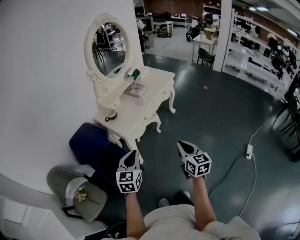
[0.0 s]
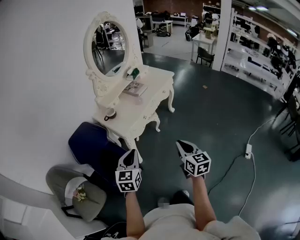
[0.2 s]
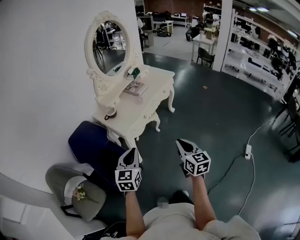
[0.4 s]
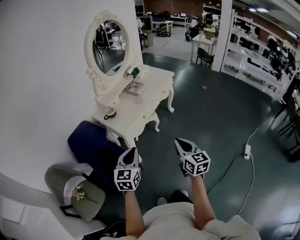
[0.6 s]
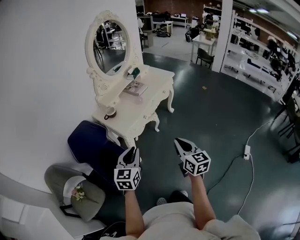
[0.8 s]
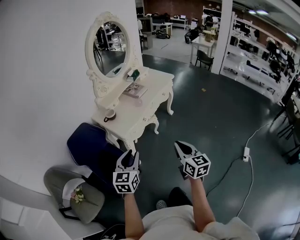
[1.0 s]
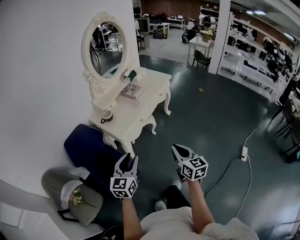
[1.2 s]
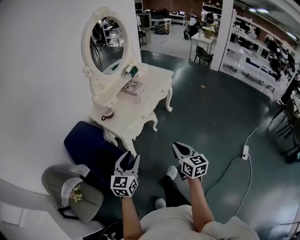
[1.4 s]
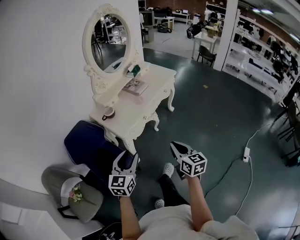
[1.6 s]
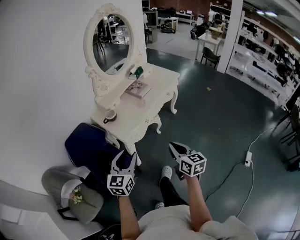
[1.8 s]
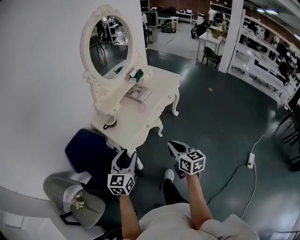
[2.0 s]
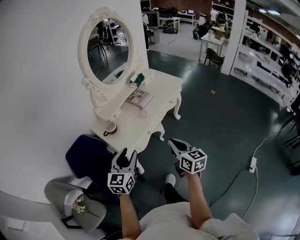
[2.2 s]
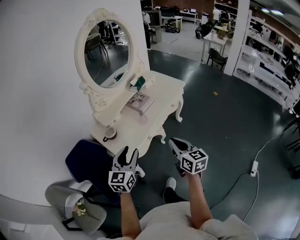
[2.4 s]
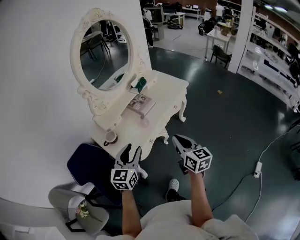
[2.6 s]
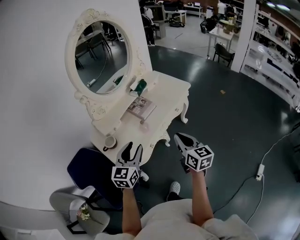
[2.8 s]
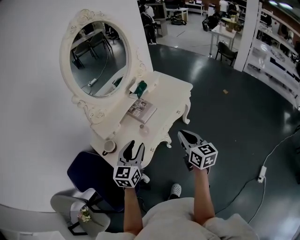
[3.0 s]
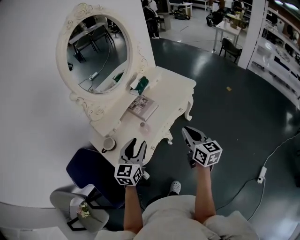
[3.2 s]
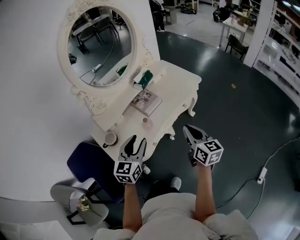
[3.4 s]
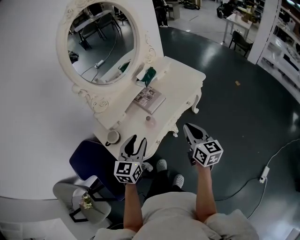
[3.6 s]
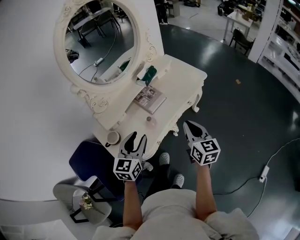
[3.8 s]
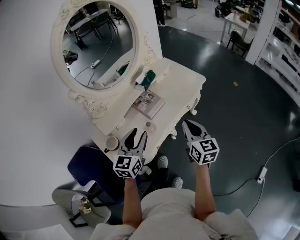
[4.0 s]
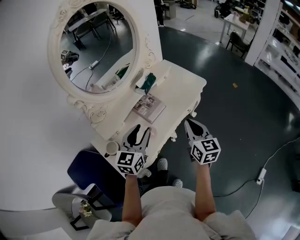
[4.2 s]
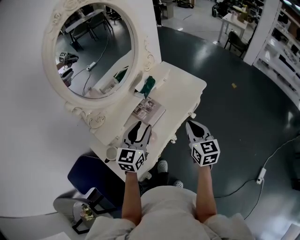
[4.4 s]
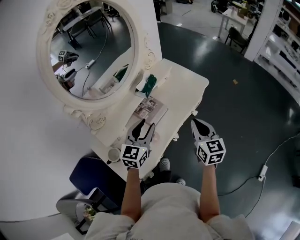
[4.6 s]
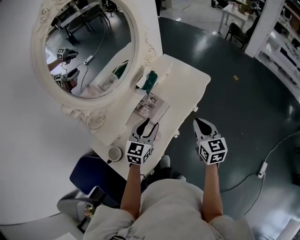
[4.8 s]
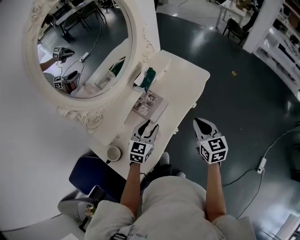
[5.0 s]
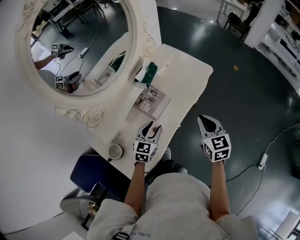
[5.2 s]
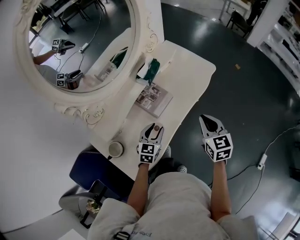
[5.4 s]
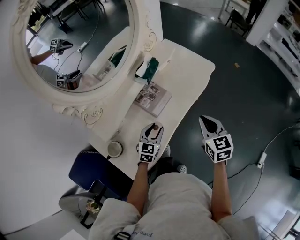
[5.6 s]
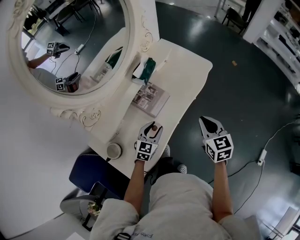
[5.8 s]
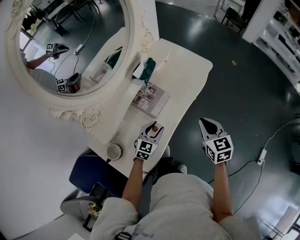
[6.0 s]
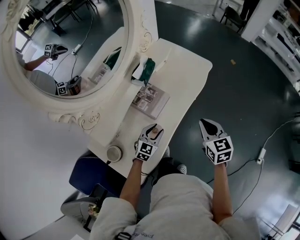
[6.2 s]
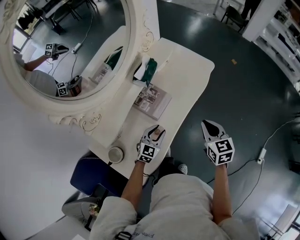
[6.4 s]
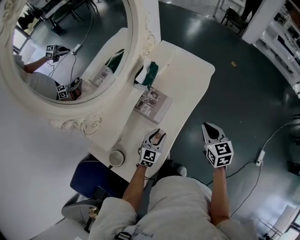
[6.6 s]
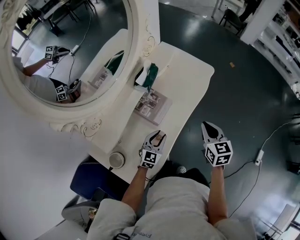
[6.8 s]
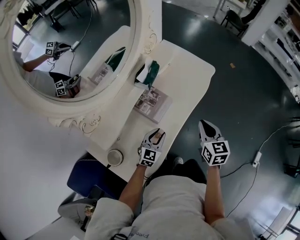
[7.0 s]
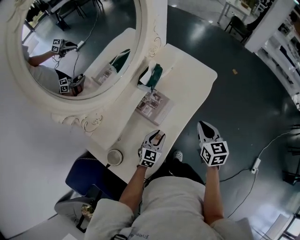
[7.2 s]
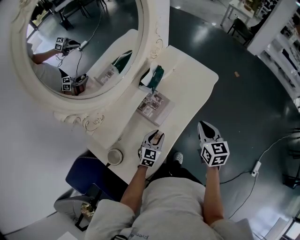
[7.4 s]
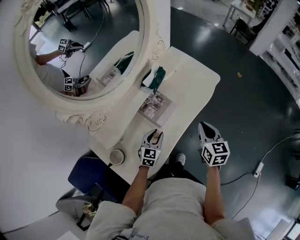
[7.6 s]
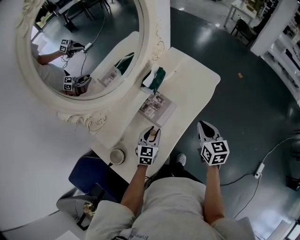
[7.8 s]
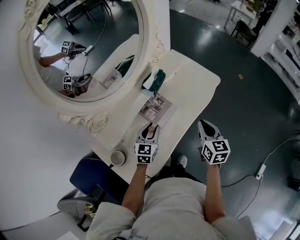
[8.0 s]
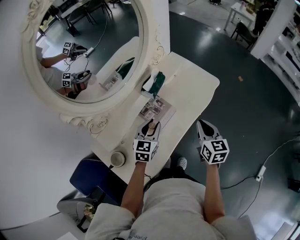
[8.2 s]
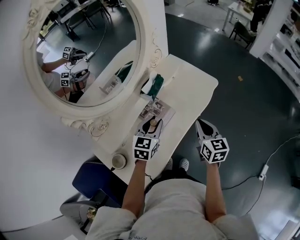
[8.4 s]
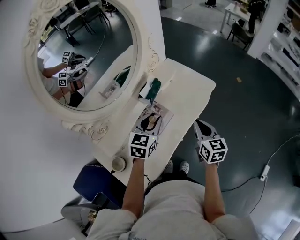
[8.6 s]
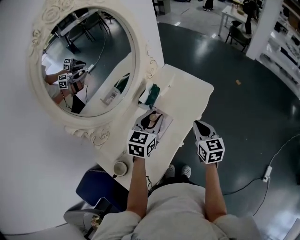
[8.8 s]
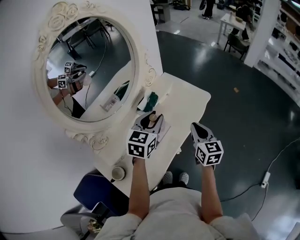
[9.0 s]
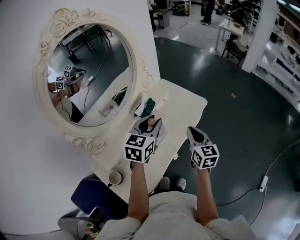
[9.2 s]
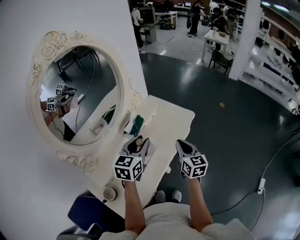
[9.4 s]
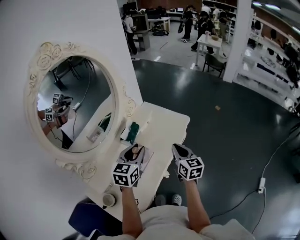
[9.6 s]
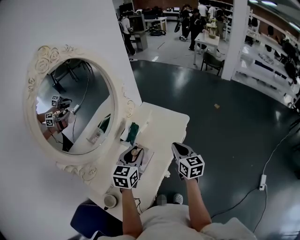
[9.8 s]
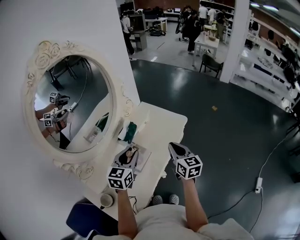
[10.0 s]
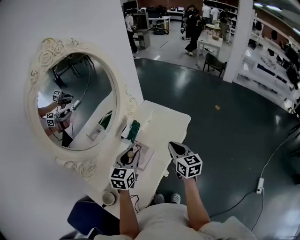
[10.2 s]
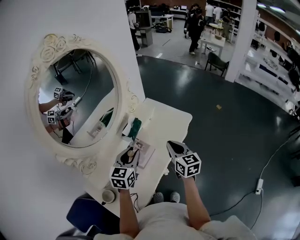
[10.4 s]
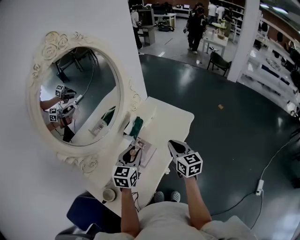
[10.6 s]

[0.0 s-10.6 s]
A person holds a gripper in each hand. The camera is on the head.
0.0 to 1.6 s: The right gripper is displaced forward by about 5 cm. Meanwhile the left gripper opens.
1.6 to 3.0 s: Both grippers move forward, some 35 cm.
3.0 to 4.6 s: Both grippers move forward, some 20 cm.
4.6 to 6.0 s: The right gripper goes about 10 cm downward; the left gripper travels downward by about 20 cm, and changes its angle by some 20 degrees.
6.0 to 7.6 s: The right gripper changes place by some 5 cm.
7.6 to 9.0 s: The left gripper is displaced upward by about 30 cm, while the right gripper shifts some 10 cm upward.
9.0 to 10.6 s: The left gripper shifts by about 5 cm.

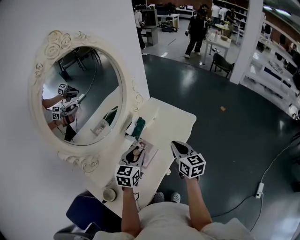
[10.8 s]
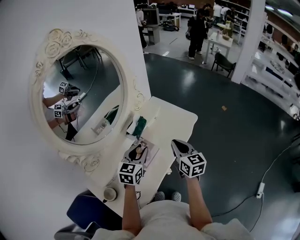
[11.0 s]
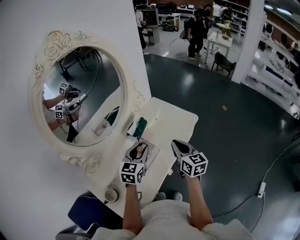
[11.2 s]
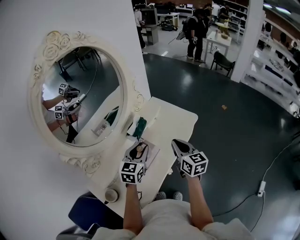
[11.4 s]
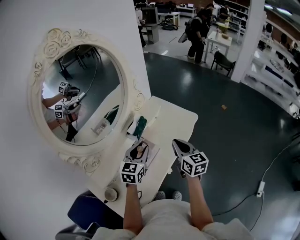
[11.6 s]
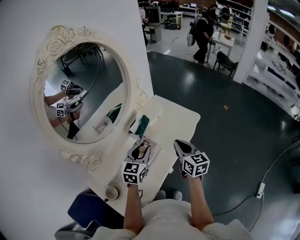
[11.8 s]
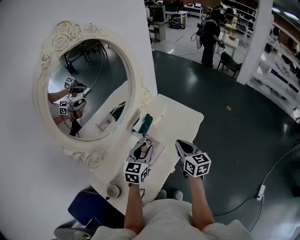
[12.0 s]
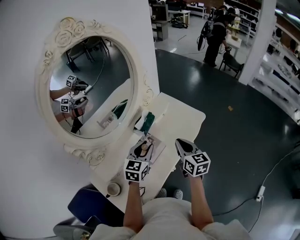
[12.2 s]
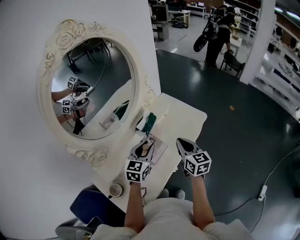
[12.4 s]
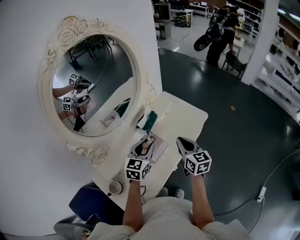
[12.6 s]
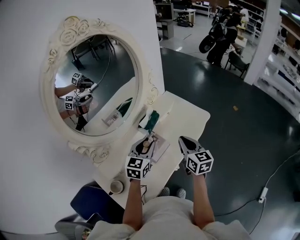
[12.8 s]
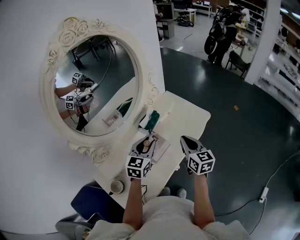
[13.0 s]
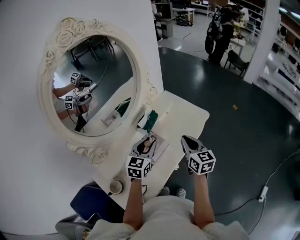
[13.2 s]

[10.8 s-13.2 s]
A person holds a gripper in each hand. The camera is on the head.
10.8 to 13.2 s: The grippers stay close to where they were, moving slightly.

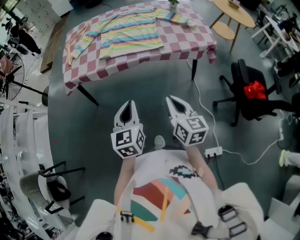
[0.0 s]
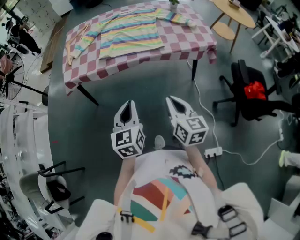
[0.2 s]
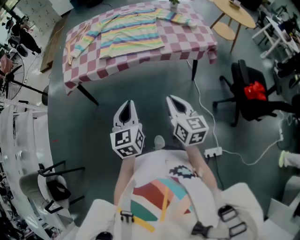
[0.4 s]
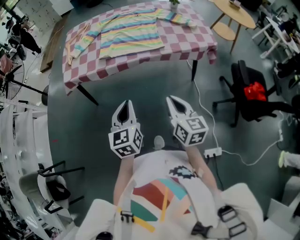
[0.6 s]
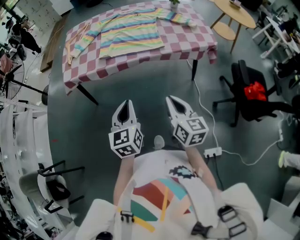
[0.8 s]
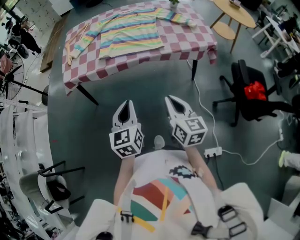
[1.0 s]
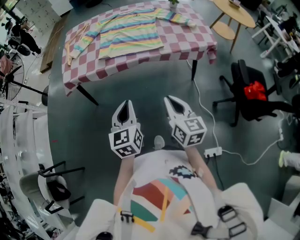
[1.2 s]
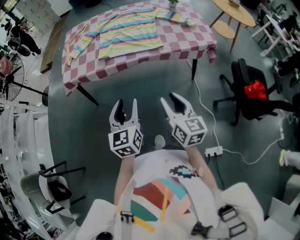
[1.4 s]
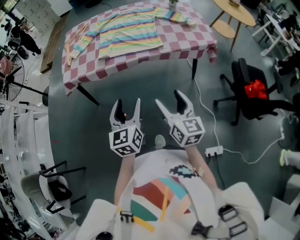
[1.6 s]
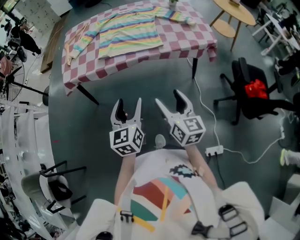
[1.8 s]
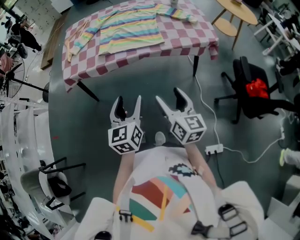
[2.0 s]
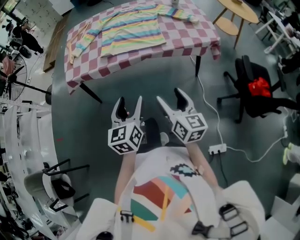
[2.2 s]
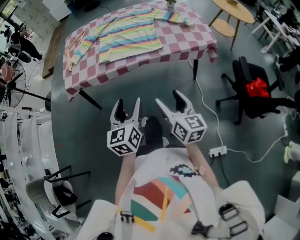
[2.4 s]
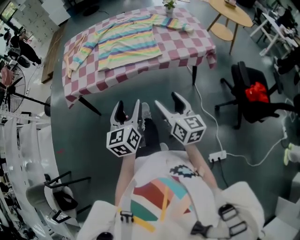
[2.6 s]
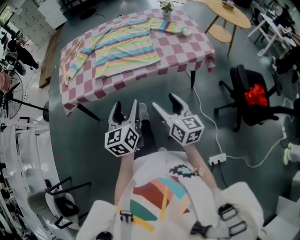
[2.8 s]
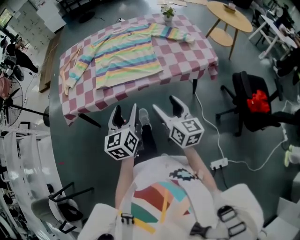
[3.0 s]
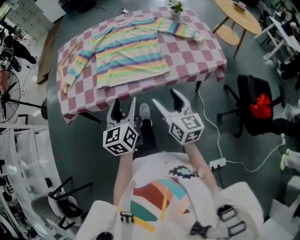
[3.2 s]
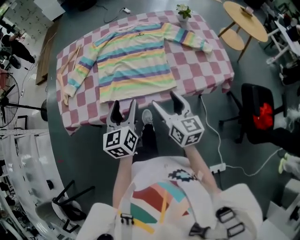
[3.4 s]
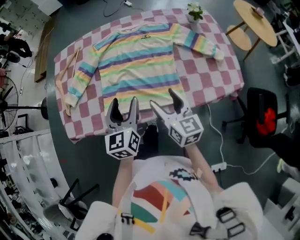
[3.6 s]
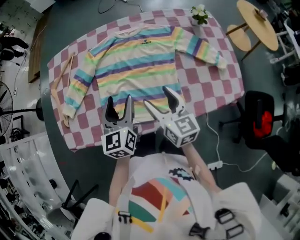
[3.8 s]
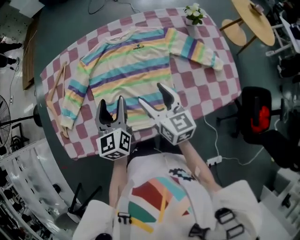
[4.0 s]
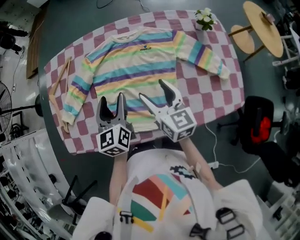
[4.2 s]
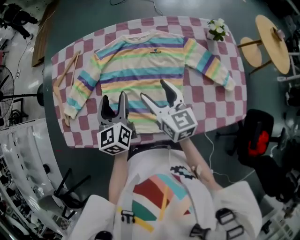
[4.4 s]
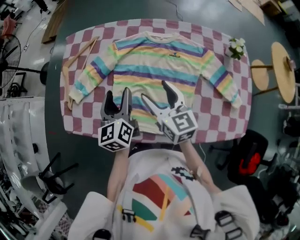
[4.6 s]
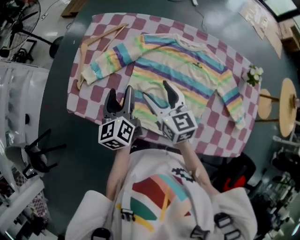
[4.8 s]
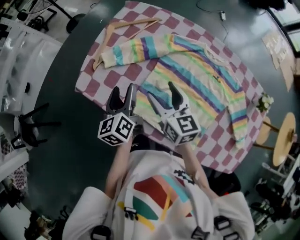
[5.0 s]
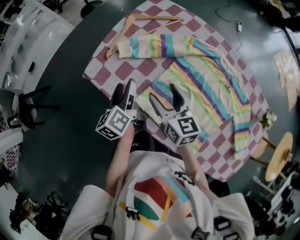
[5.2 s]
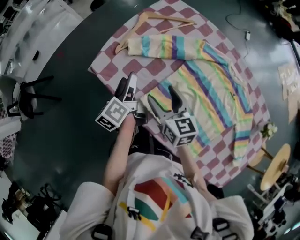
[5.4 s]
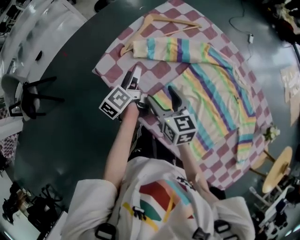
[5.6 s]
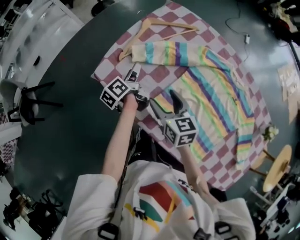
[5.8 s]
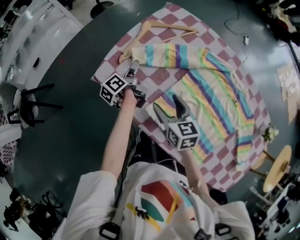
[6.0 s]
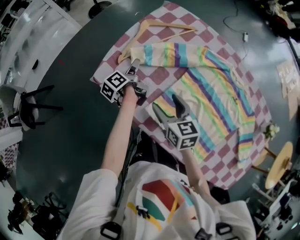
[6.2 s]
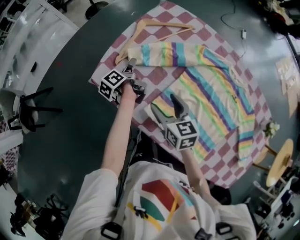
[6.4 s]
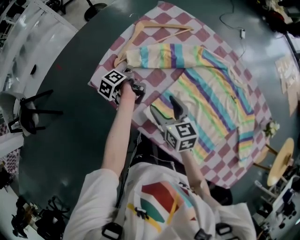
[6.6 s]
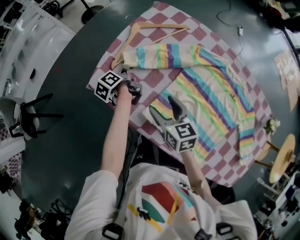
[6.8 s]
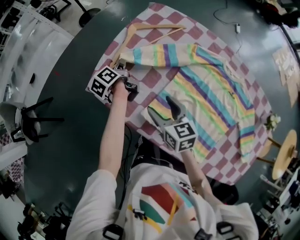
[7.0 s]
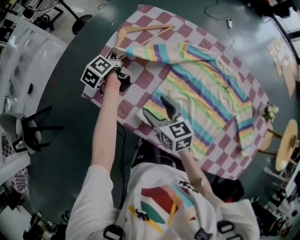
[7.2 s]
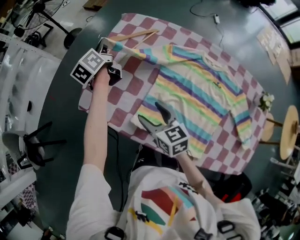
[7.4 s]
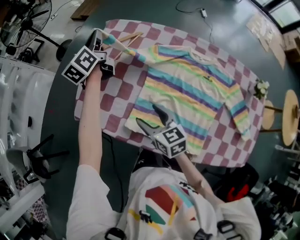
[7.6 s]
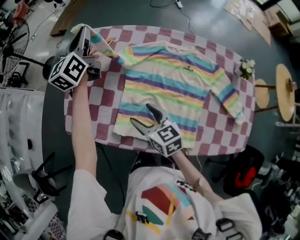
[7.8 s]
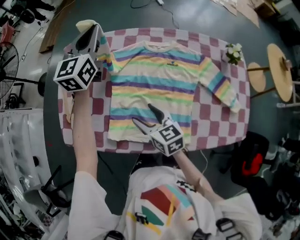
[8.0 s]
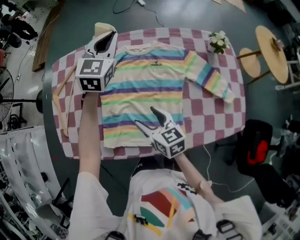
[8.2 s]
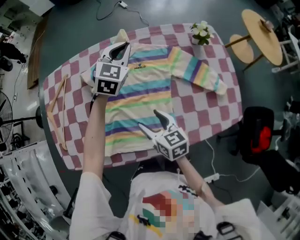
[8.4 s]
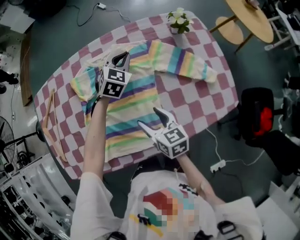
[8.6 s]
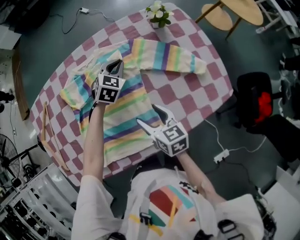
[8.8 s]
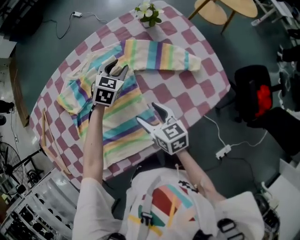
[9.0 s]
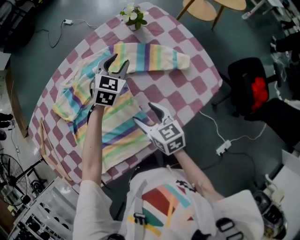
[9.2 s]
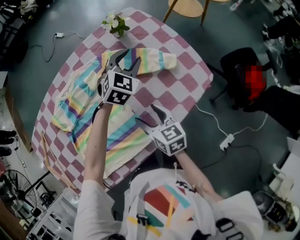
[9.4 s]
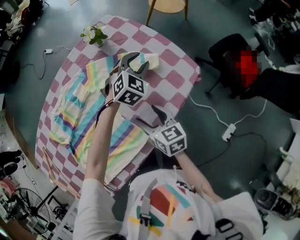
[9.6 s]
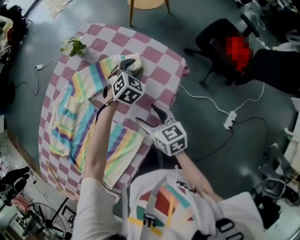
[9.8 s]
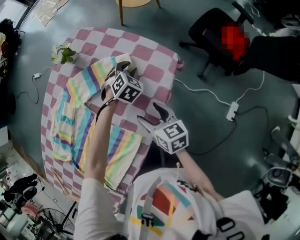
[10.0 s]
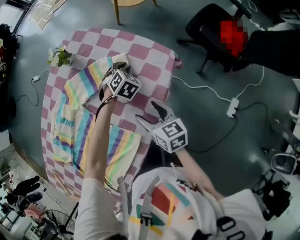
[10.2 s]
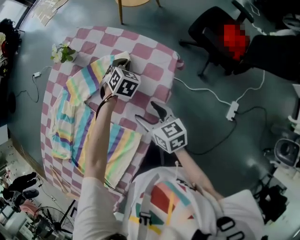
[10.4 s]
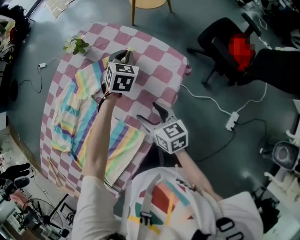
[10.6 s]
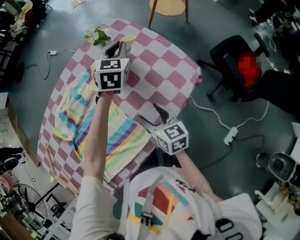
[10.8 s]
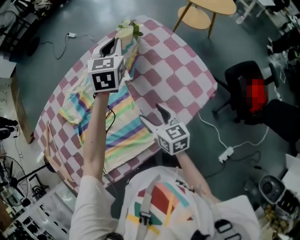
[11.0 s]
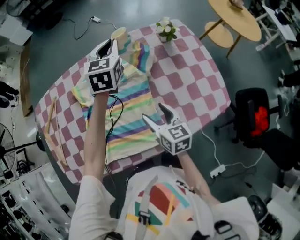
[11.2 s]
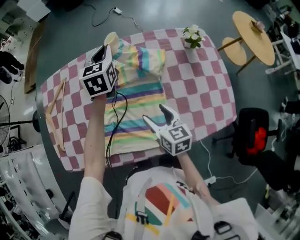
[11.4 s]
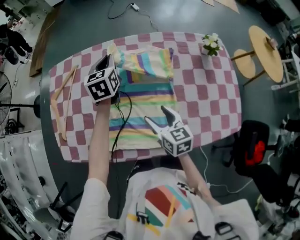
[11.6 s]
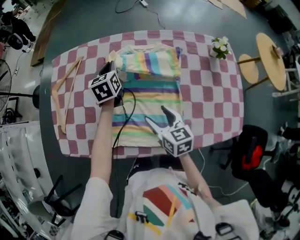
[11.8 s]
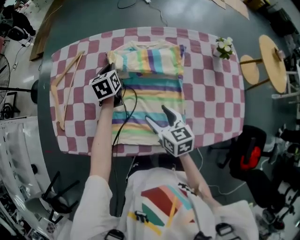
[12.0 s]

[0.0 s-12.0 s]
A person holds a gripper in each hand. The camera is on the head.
0.0 to 1.6 s: The left gripper opens up. Meanwhile the right gripper opens up.
1.6 to 3.0 s: The two grippers go roughly 15 cm forward.
3.0 to 4.4 s: Both grippers are carried forward, some 40 cm.
4.4 to 6.0 s: The right gripper changes place by about 30 cm, and swivels some 50 degrees; the left gripper moves approximately 35 cm, and rotates around the line of its fingers by approximately 70 degrees, counterclockwise from behind.
6.0 to 7.6 s: The left gripper travels upward, forward and to the right by roughly 30 cm, twists approximately 50 degrees clockwise, seen from behind, and closes its fingers; the right gripper moves approximately 5 cm.
7.6 to 9.0 s: The left gripper changes place by about 70 cm, angles its fingers downward, by about 40 degrees, and opens; the right gripper moves some 35 cm, and changes its angle by some 50 degrees.
9.0 to 10.4 s: The left gripper goes upward and returns, approximately 10 cm each way, swivels approximately 30 degrees, and closes. The right gripper changes place by some 20 cm, and turns by roughly 30 degrees.
10.4 to 12.0 s: The right gripper changes place by approximately 30 cm, and rotates roughly 60 degrees. Meanwhile the left gripper travels upward and back again, about 25 cm each way, and twists approximately 90 degrees counterclockwise, seen from behind.
